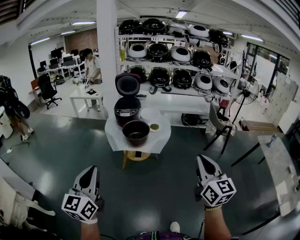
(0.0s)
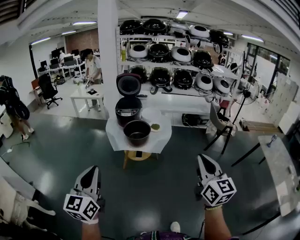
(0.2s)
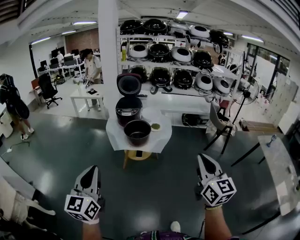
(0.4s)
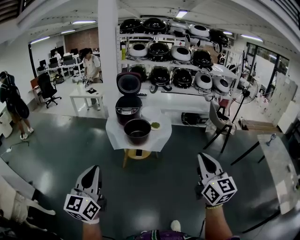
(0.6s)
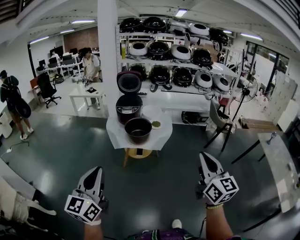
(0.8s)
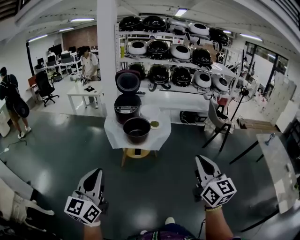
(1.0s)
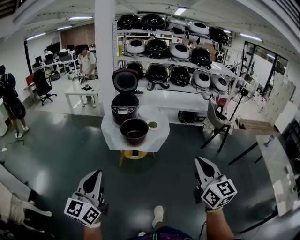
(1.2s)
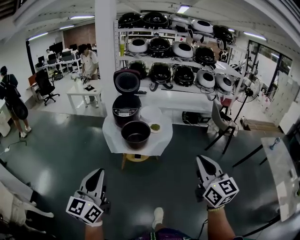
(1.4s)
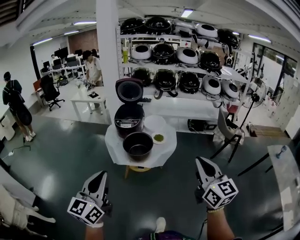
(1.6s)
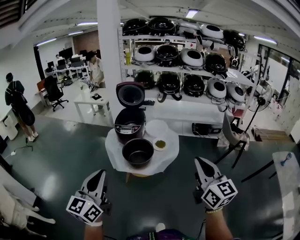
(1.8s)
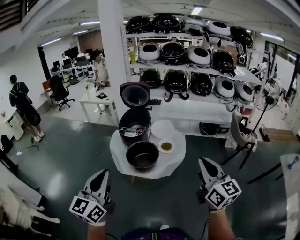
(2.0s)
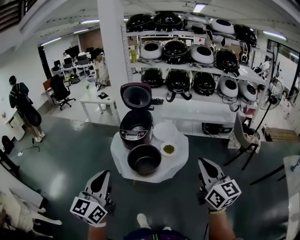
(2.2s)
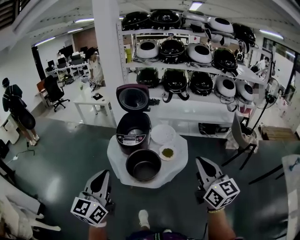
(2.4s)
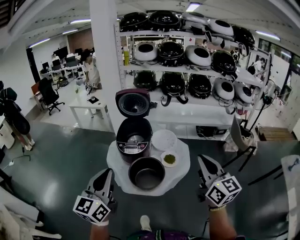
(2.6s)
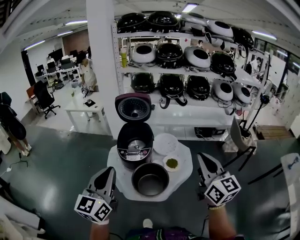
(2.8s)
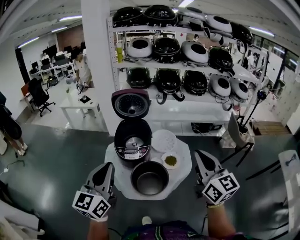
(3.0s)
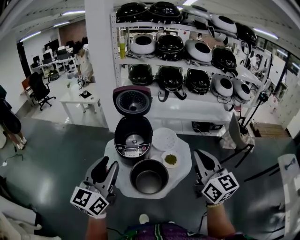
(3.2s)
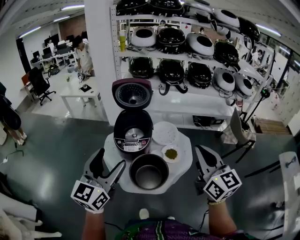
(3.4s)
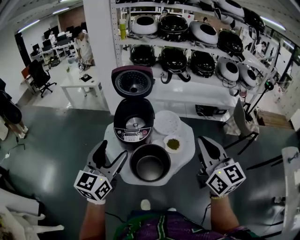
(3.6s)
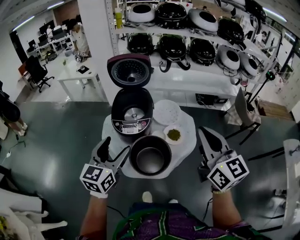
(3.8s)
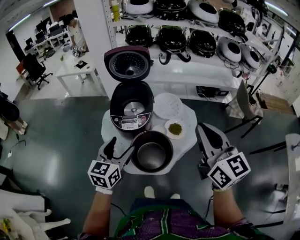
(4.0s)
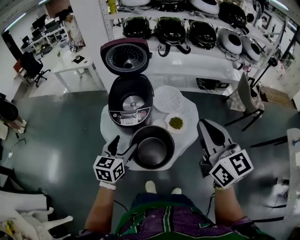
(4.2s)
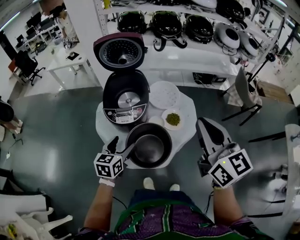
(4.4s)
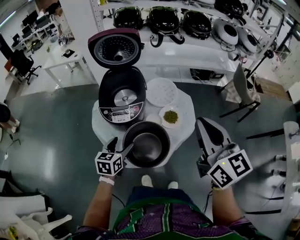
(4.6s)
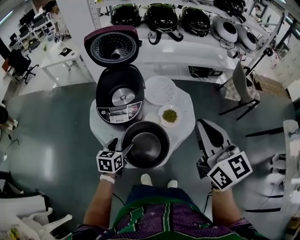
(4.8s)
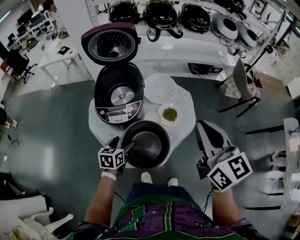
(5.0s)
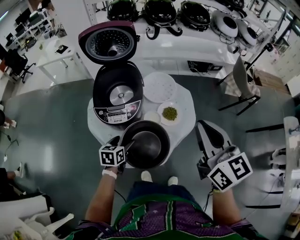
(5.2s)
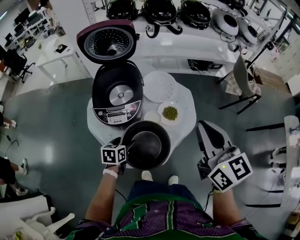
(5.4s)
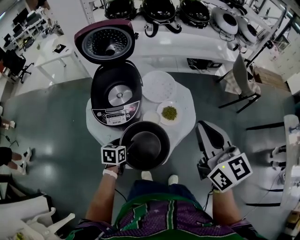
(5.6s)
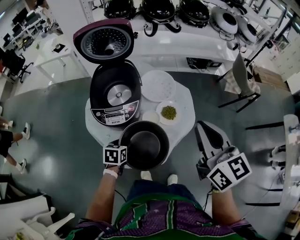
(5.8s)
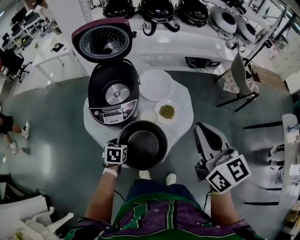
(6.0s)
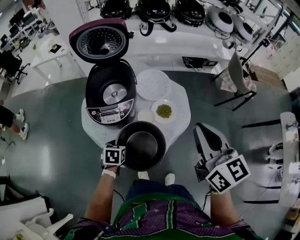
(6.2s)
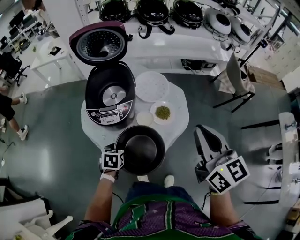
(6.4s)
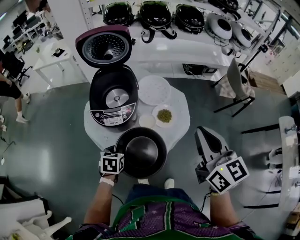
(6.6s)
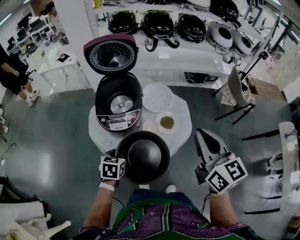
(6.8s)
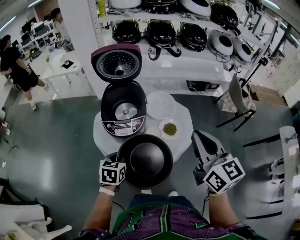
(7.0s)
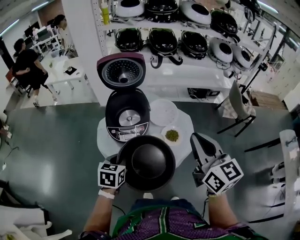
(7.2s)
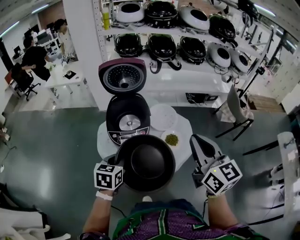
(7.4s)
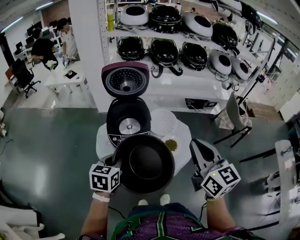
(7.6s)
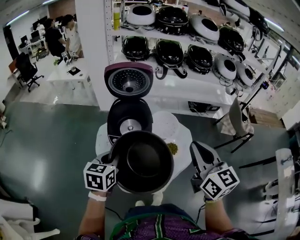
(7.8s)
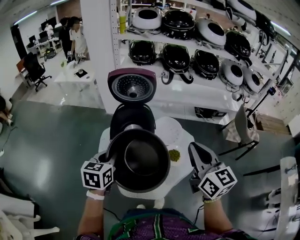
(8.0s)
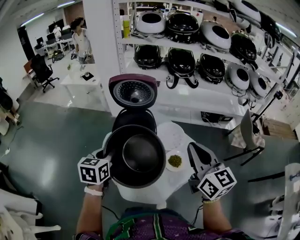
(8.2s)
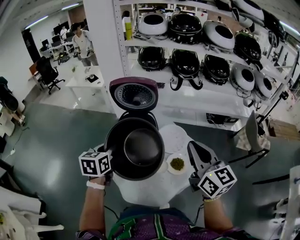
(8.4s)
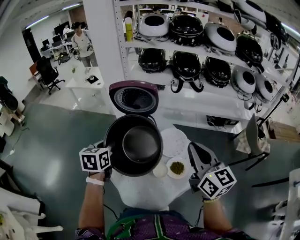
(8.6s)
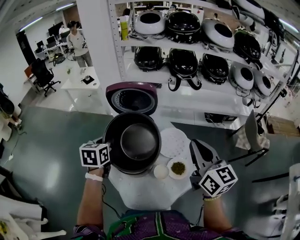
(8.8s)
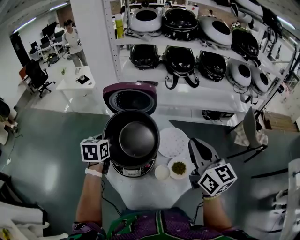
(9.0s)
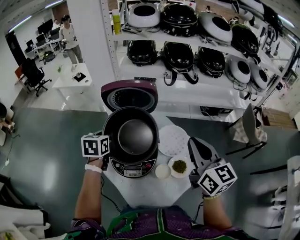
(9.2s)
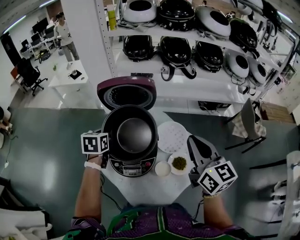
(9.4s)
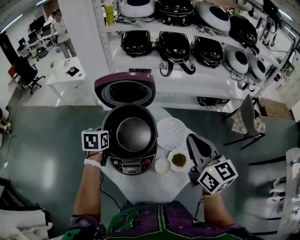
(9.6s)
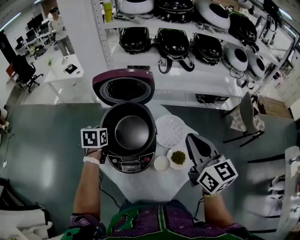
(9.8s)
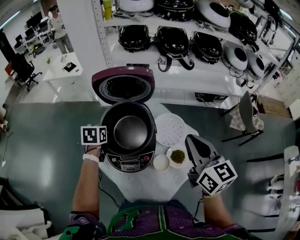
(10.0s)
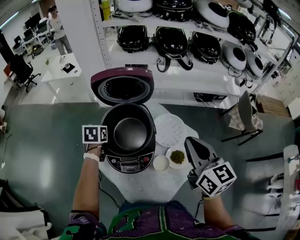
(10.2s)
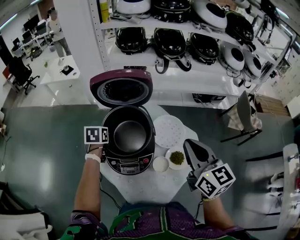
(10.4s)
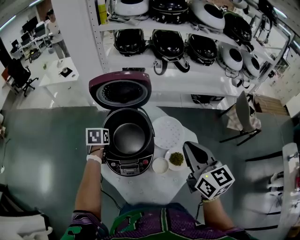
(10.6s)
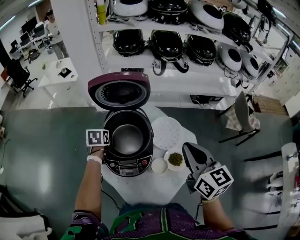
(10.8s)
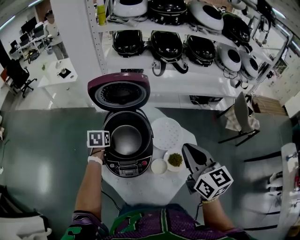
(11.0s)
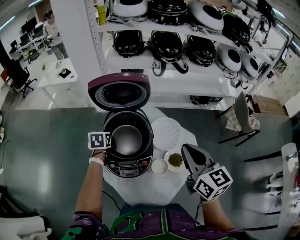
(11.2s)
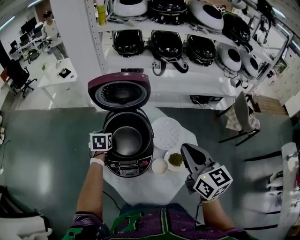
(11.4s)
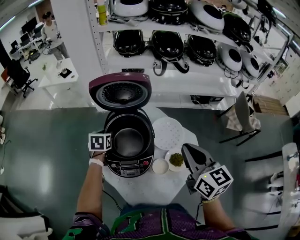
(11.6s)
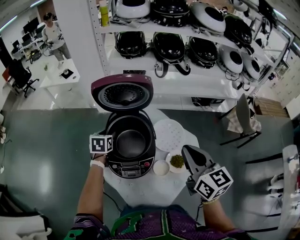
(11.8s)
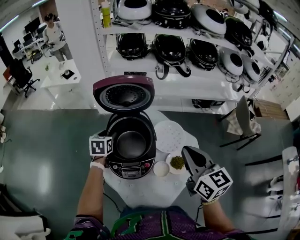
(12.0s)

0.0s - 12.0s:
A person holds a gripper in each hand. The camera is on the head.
0.0s - 1.6s: The two grippers go approximately 15 cm forward.
1.6s - 3.0s: The grippers both shift forward by some 40 cm.
3.0s - 4.4s: The right gripper shifts some 10 cm downward and forward, while the left gripper heads downward, covering roughly 30 cm, tips its fingers downward by roughly 30 degrees, and opens its fingers.
4.4s - 6.0s: The right gripper heads downward, covering approximately 5 cm, while the left gripper is displaced downward by roughly 15 cm, rotates some 30 degrees, and closes up.
6.0s - 7.6s: The left gripper is displaced upward by some 25 cm, and rotates some 20 degrees. The right gripper goes approximately 10 cm upward and to the left.
7.6s - 9.0s: The grippers both shift forward by approximately 20 cm.
9.0s - 10.4s: The left gripper moves downward and forward, approximately 15 cm; the right gripper moves some 5 cm.
10.4s - 12.0s: The left gripper opens its fingers.

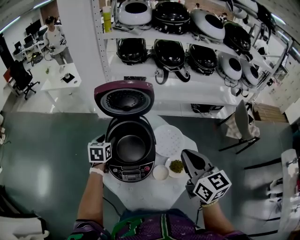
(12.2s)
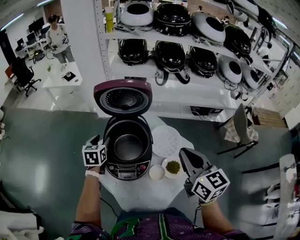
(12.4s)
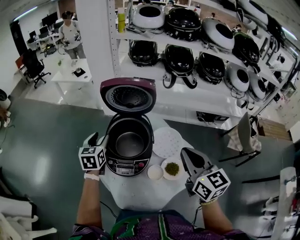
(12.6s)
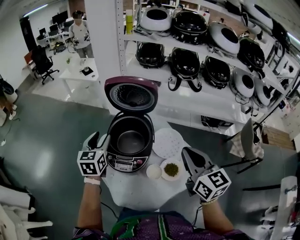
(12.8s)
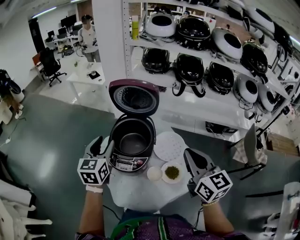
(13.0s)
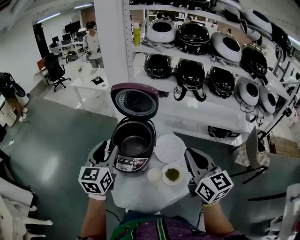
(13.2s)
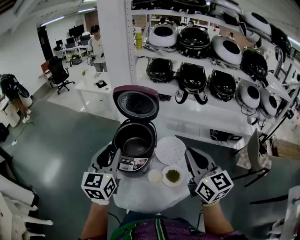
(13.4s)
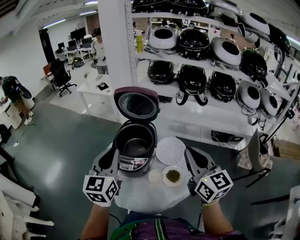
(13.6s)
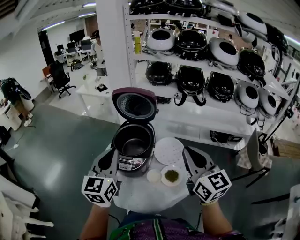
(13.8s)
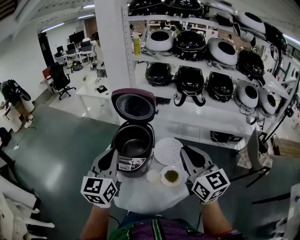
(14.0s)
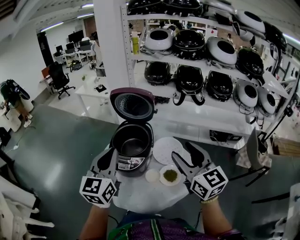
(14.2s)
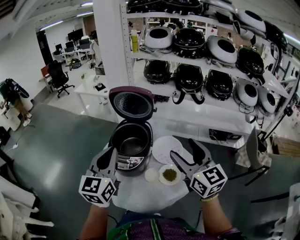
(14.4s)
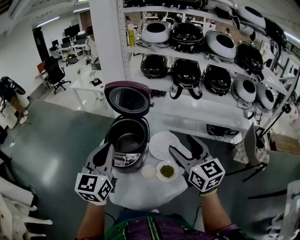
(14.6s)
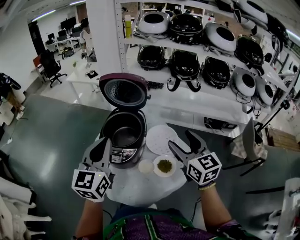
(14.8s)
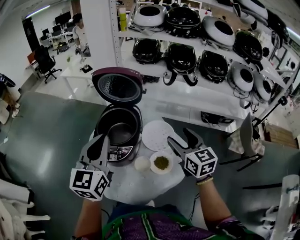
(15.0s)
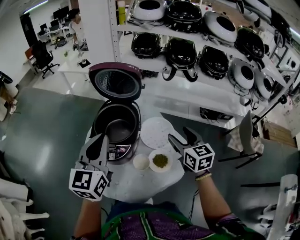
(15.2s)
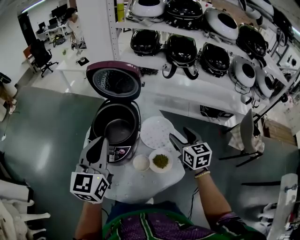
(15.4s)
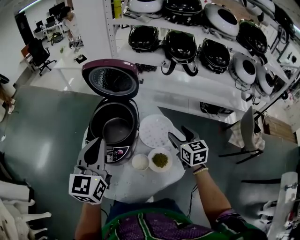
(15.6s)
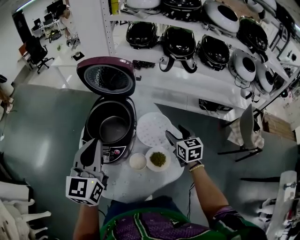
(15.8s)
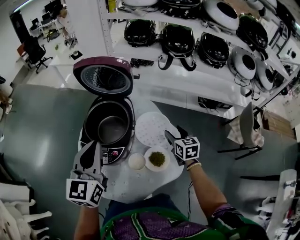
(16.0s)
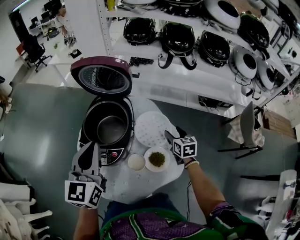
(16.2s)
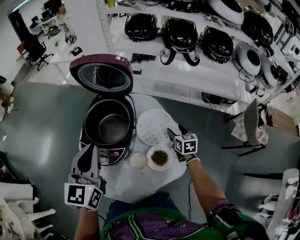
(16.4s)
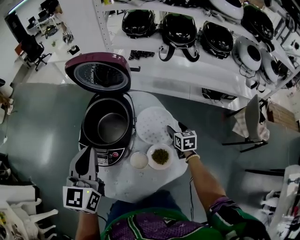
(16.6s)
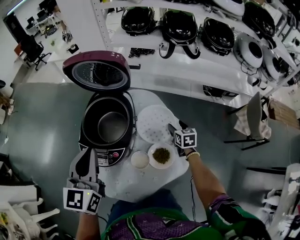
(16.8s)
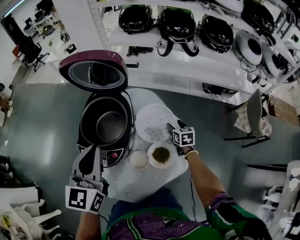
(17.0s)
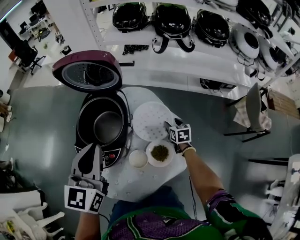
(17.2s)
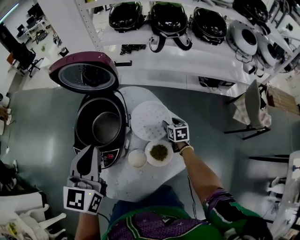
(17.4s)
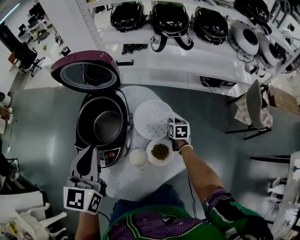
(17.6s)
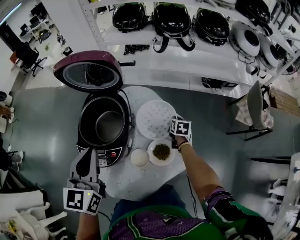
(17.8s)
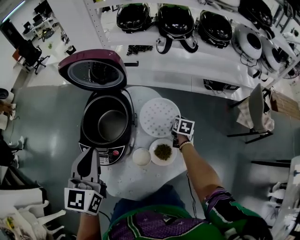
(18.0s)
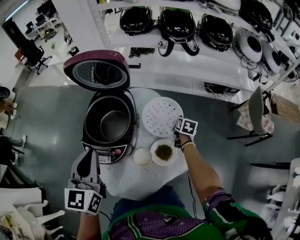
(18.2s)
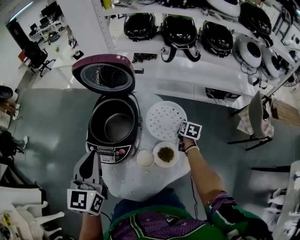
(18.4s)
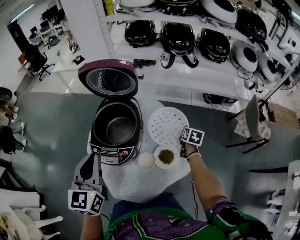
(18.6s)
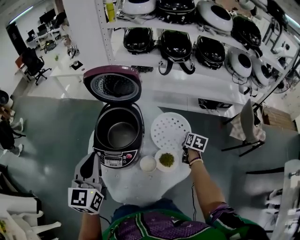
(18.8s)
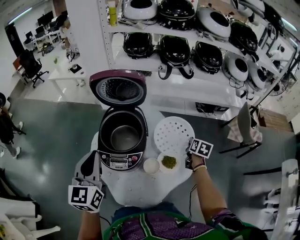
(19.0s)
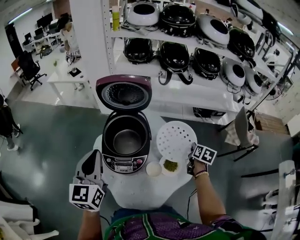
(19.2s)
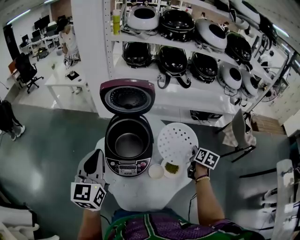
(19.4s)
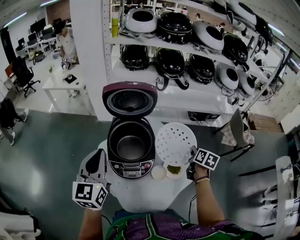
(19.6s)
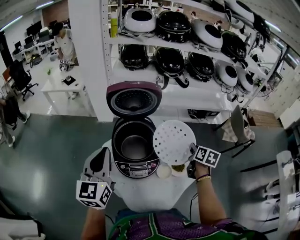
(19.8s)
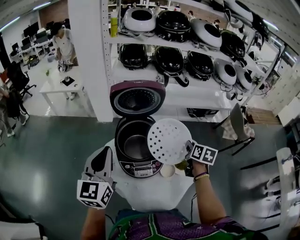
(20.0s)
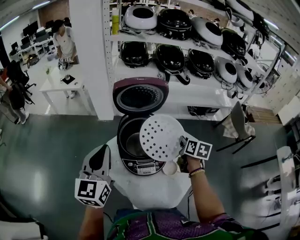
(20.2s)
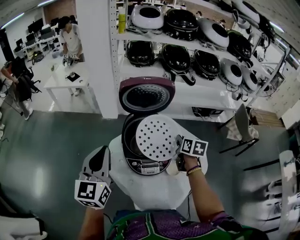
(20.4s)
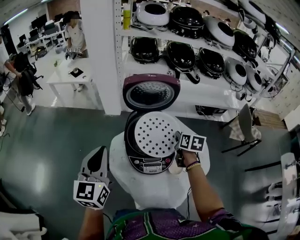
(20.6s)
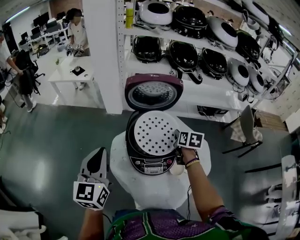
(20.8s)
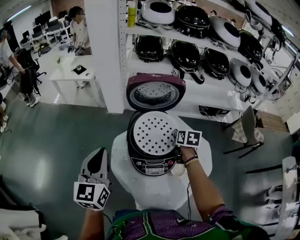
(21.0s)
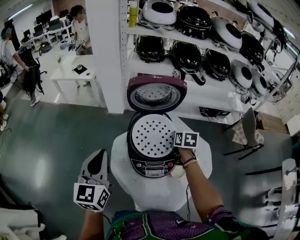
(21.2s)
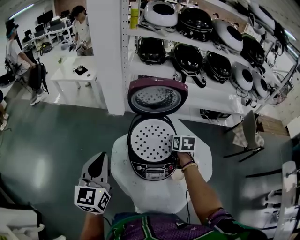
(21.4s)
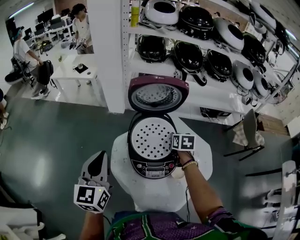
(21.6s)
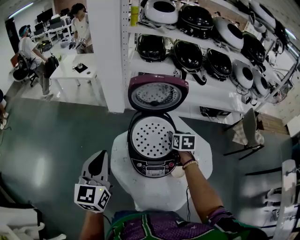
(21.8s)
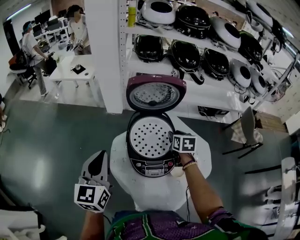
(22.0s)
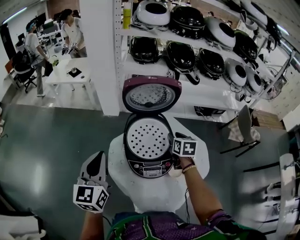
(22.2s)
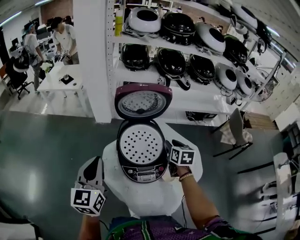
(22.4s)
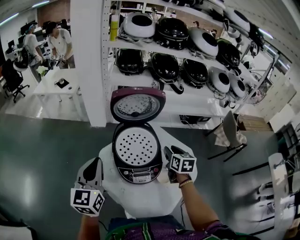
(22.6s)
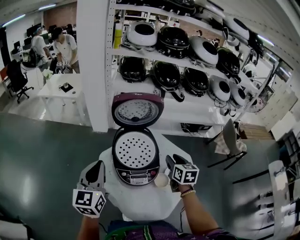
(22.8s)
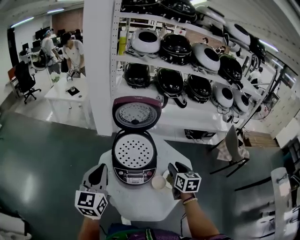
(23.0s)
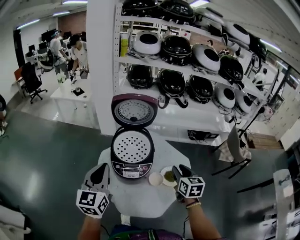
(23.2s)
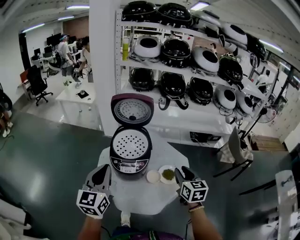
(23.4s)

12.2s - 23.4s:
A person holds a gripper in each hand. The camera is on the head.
12.2s - 13.8s: The left gripper goes about 35 cm backward and upward, tilts its fingers roughly 40 degrees upward, and closes. Meanwhile the right gripper travels backward, upward and to the right by some 15 cm, and swivels about 20 degrees.
13.8s - 15.4s: The left gripper is displaced forward by some 5 cm. Meanwhile the right gripper heads downward and forward, covering approximately 25 cm, changes its angle by about 20 degrees, and opens.
15.4s - 17.0s: The right gripper goes approximately 25 cm downward, and turns by roughly 20 degrees. The left gripper shifts by roughly 5 cm.
17.0s - 18.6s: The right gripper heads upward and to the right, covering roughly 10 cm, changes its angle by roughly 20 degrees, and closes up. Meanwhile the left gripper travels backward and to the left by some 10 cm.
18.6s - 20.2s: The right gripper travels to the left, upward and backward by approximately 30 cm, while the left gripper is displaced to the left by roughly 20 cm.
20.2s - 21.8s: The left gripper travels to the left by approximately 5 cm; the right gripper travels to the left and forward by some 15 cm, turns by about 20 degrees, and opens.
21.8s - 23.4s: The right gripper travels backward, to the right and upward by about 35 cm, and turns by some 20 degrees, while the left gripper heads to the right and backward, covering roughly 20 cm.
